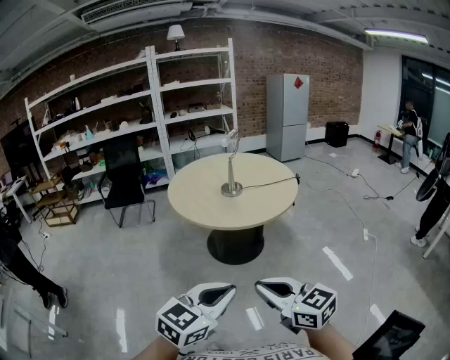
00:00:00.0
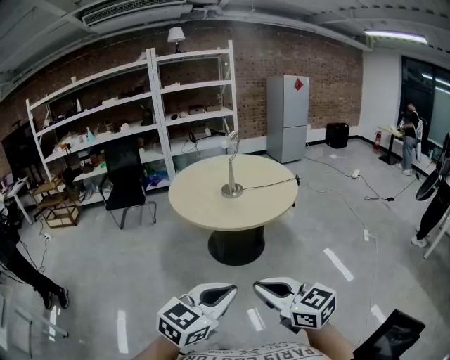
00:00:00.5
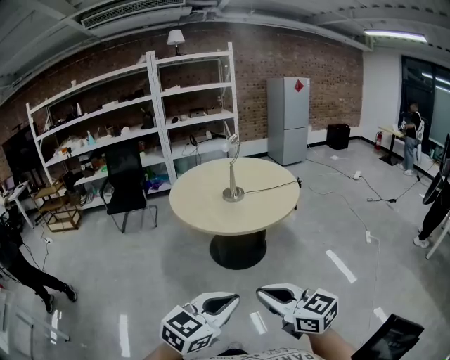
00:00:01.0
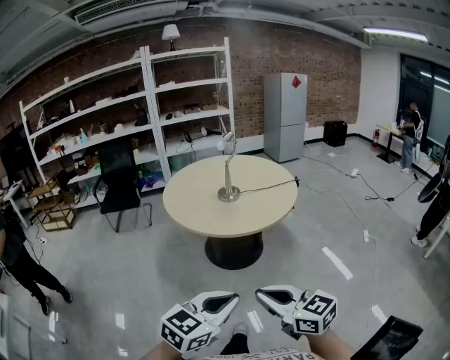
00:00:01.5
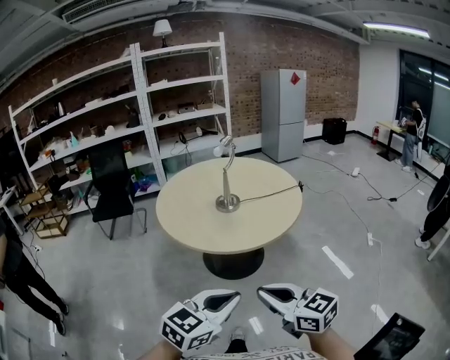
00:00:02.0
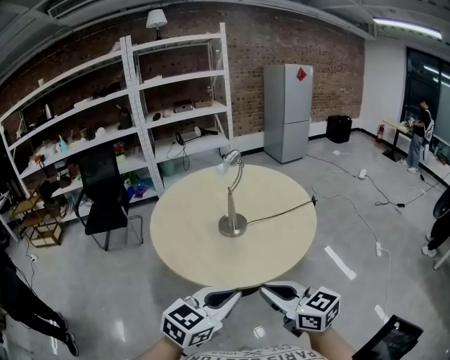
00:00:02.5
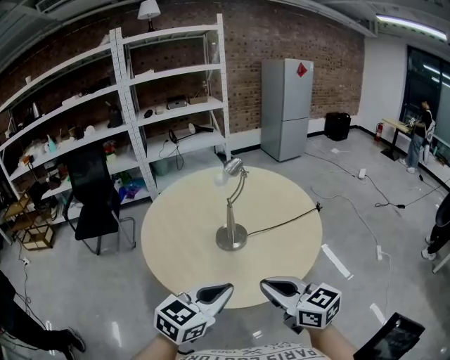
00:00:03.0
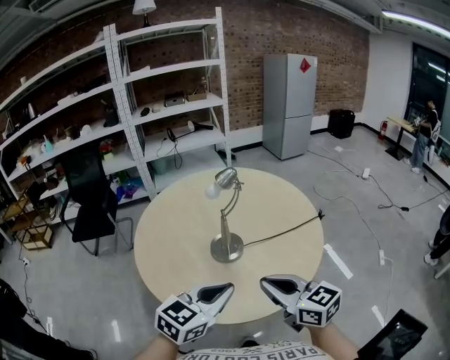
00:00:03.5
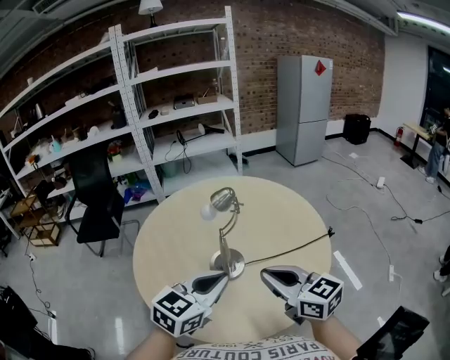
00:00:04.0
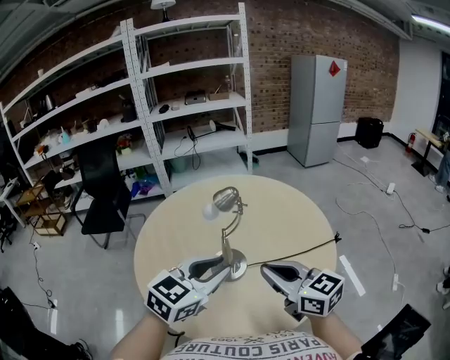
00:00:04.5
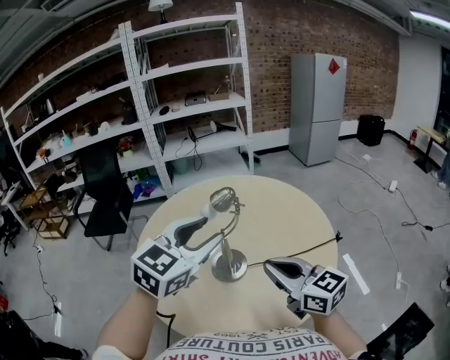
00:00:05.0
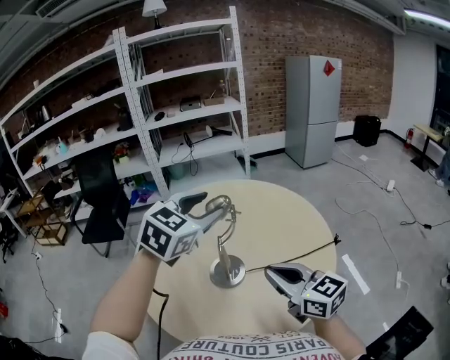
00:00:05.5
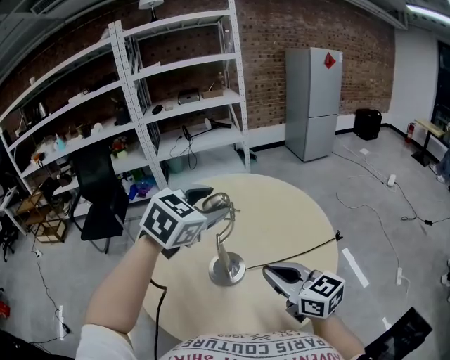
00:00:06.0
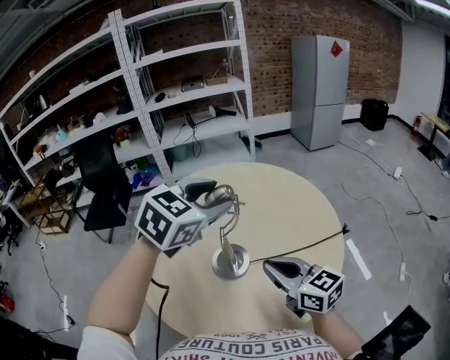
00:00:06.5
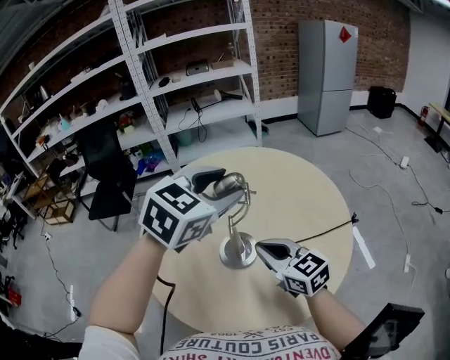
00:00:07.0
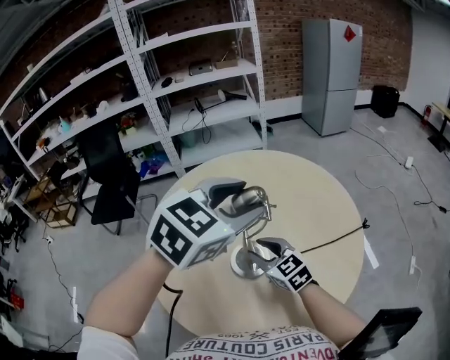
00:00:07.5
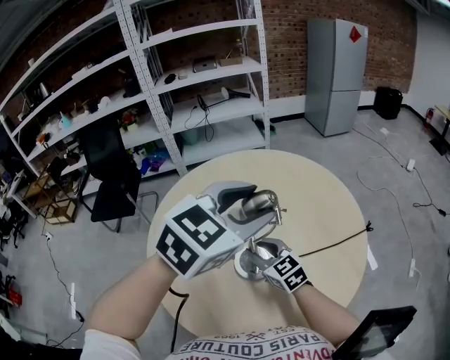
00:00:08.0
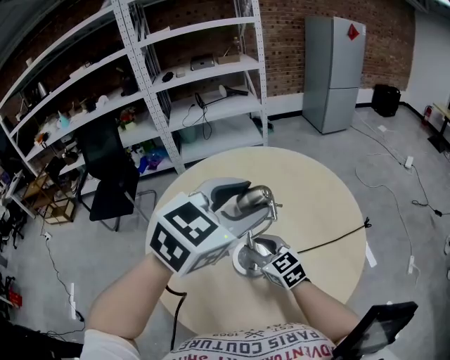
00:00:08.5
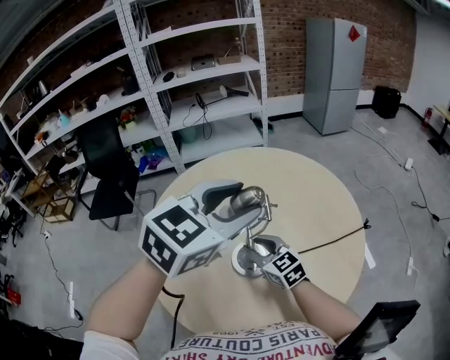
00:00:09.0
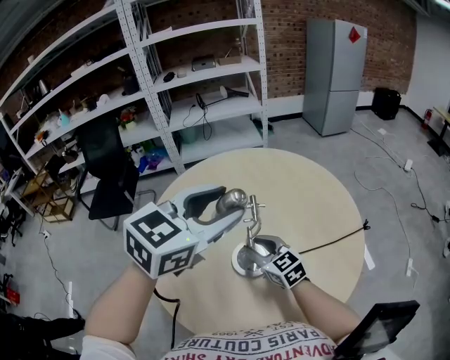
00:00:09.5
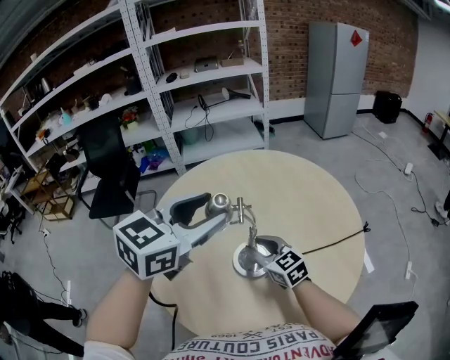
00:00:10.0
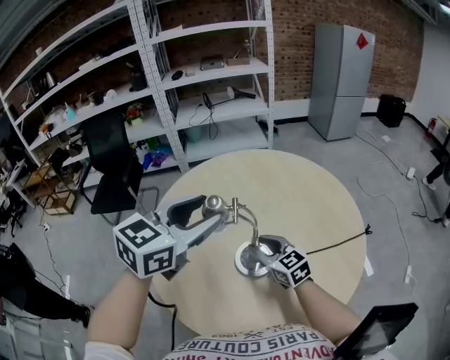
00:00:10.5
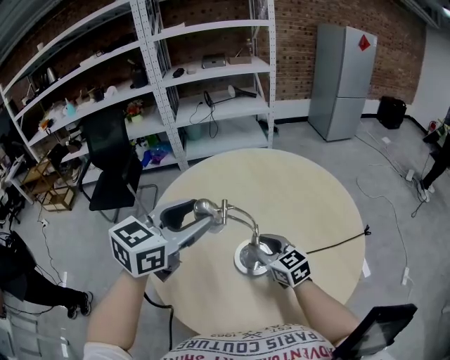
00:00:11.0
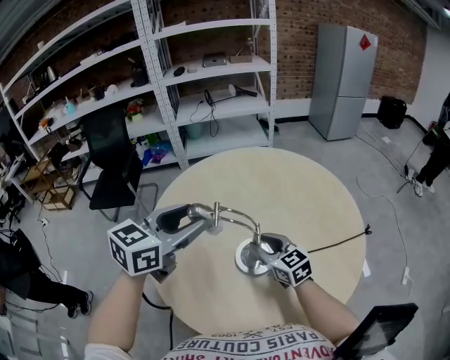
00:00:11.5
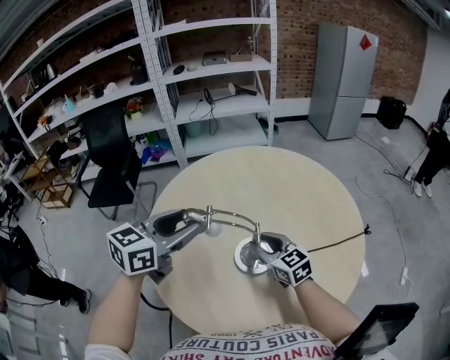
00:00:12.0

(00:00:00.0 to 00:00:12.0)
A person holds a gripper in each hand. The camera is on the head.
00:00:00.0 - 00:00:02.0: Both grippers move forward, roughly 15 cm.
00:00:02.0 - 00:00:04.0: Both grippers are carried forward, some 50 cm.
00:00:04.0 - 00:00:06.0: The right gripper shifts by approximately 5 cm, while the left gripper is displaced forward and upward by approximately 20 cm, turns by approximately 20 degrees, and opens its fingers.
00:00:06.0 - 00:00:08.0: The right gripper moves downward, forward and to the left, approximately 25 cm, and opens.
00:00:08.0 - 00:00:10.0: The left gripper travels to the left by roughly 10 cm.
00:00:10.0 - 00:00:12.0: The left gripper is displaced to the left and downward by approximately 10 cm.

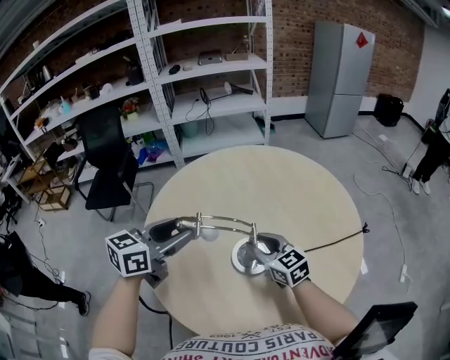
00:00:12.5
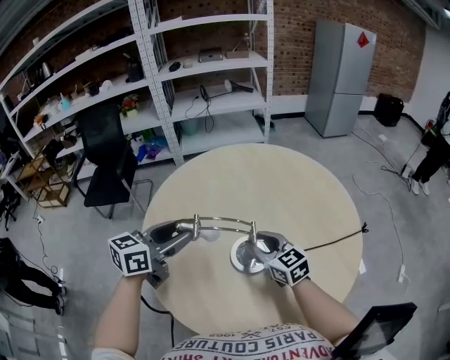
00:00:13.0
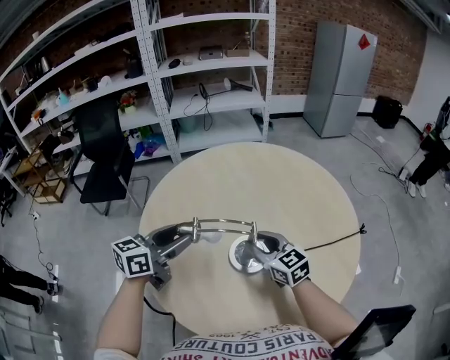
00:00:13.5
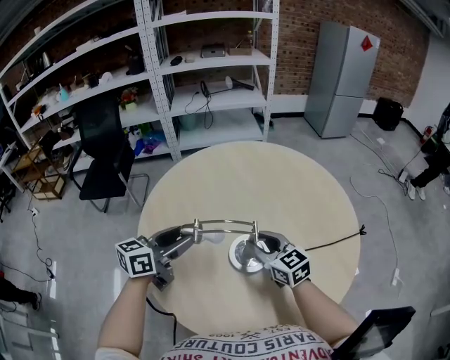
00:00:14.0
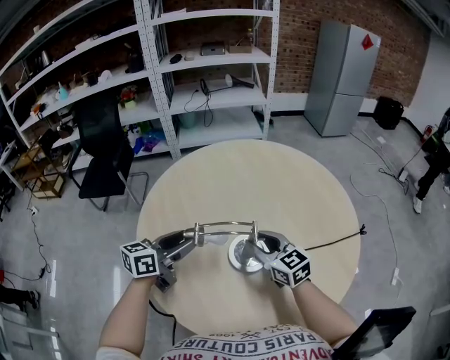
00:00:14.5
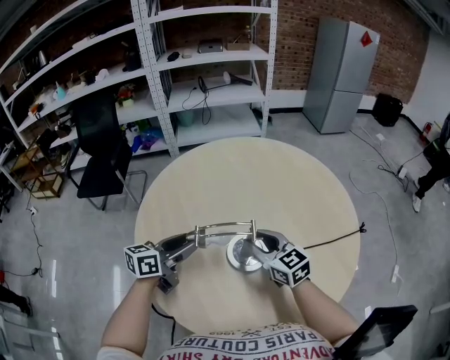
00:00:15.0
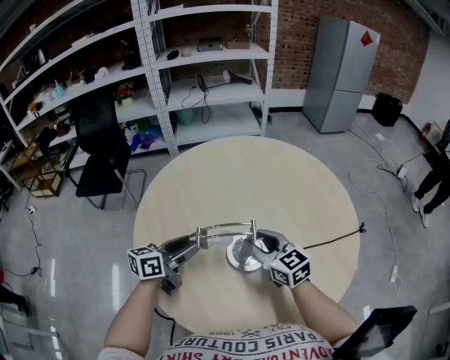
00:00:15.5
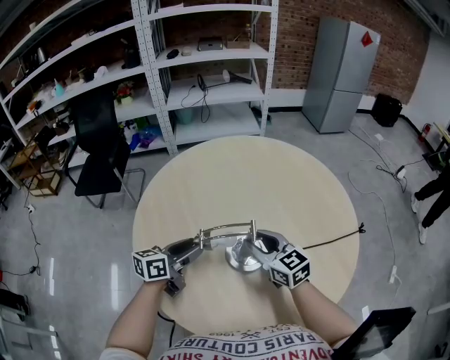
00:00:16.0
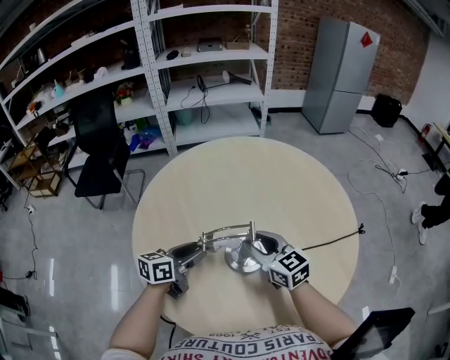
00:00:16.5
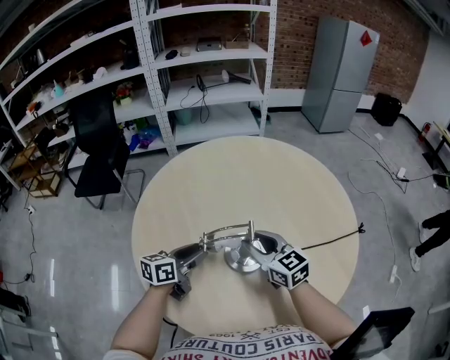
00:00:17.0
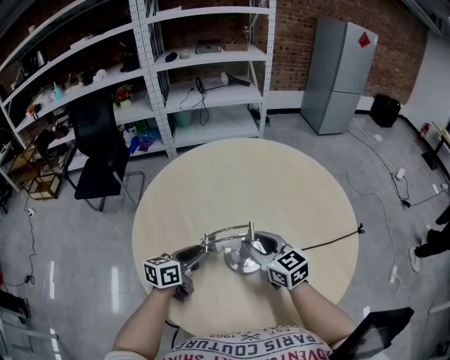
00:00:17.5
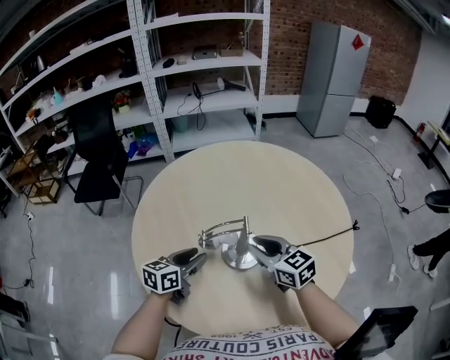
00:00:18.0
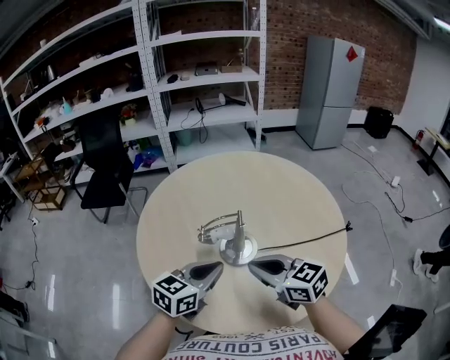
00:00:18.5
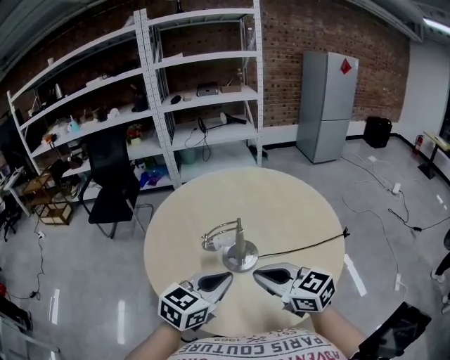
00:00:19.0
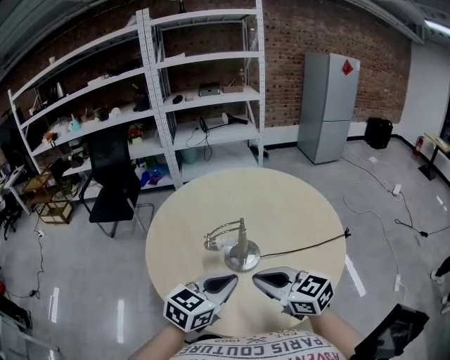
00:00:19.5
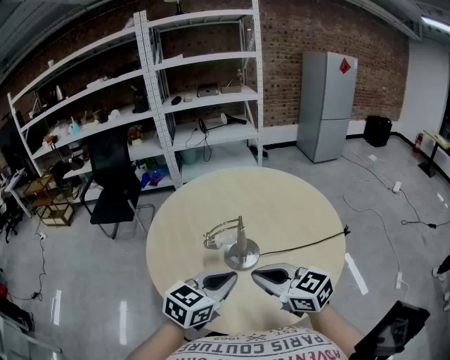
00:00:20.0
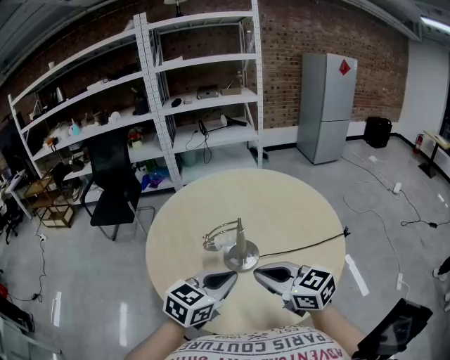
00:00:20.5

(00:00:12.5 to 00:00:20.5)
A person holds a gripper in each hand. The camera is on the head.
00:00:12.5 - 00:00:14.5: The left gripper travels downward by roughly 10 cm.
00:00:14.5 - 00:00:16.5: The left gripper is displaced downward by some 10 cm.
00:00:16.5 - 00:00:18.5: The left gripper moves backward, upward and to the right, some 20 cm, turns by some 20 degrees, and closes up. Meanwhile the right gripper heads backward and upward, covering roughly 15 cm, and closes its fingers.
00:00:18.5 - 00:00:20.5: The right gripper shifts by roughly 5 cm. The left gripper moves upward, roughly 5 cm.

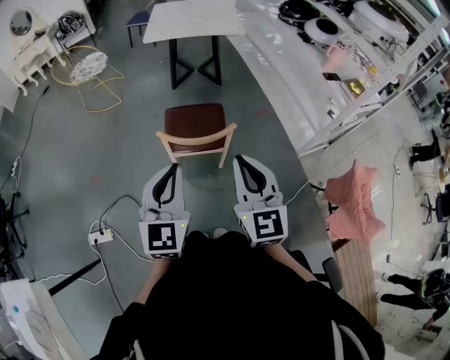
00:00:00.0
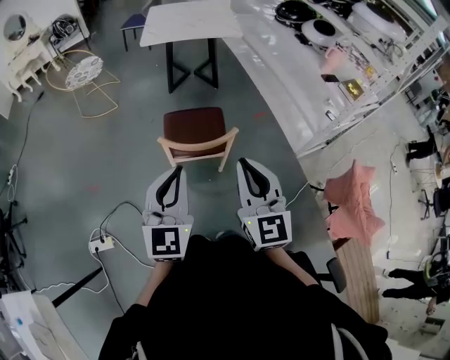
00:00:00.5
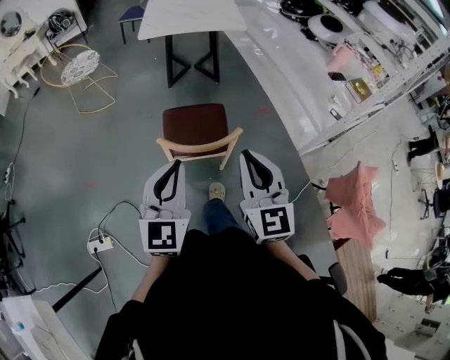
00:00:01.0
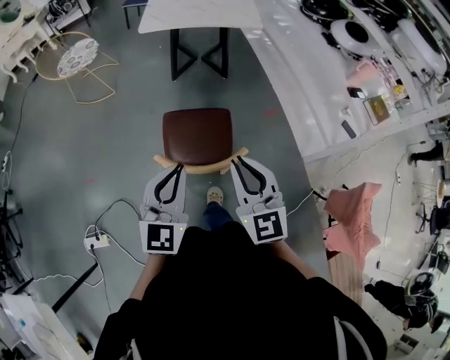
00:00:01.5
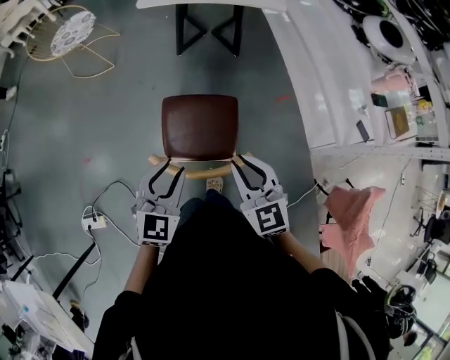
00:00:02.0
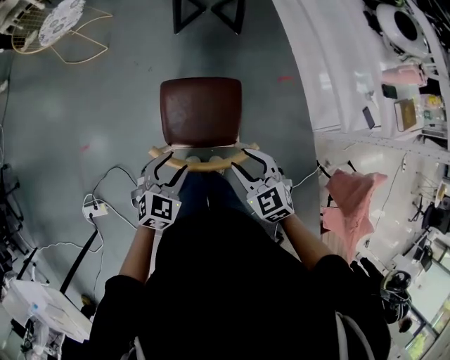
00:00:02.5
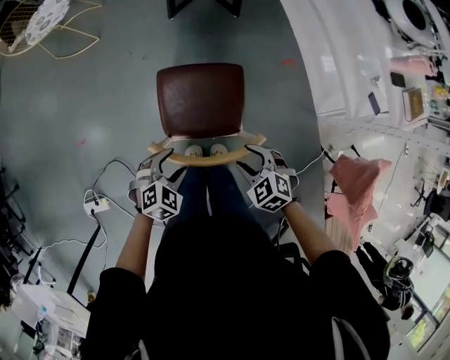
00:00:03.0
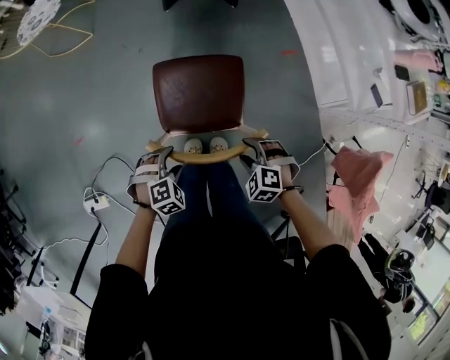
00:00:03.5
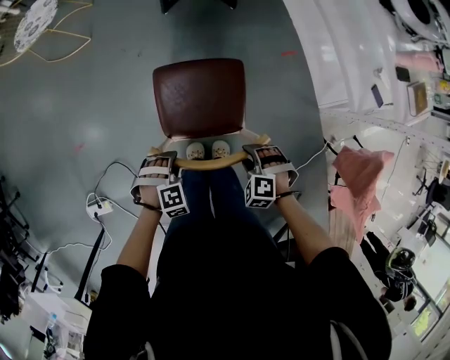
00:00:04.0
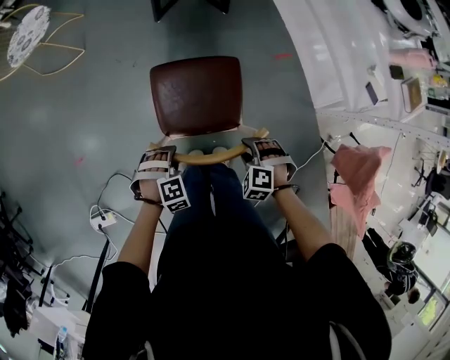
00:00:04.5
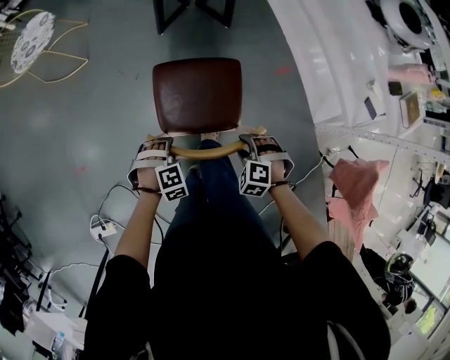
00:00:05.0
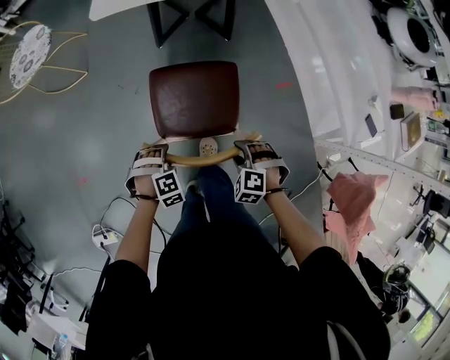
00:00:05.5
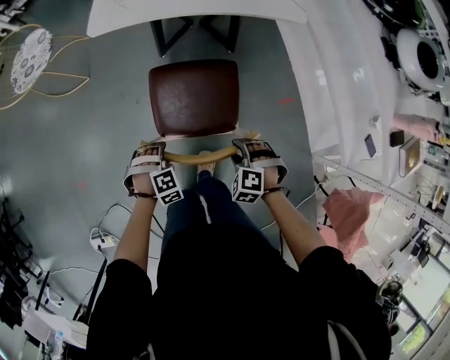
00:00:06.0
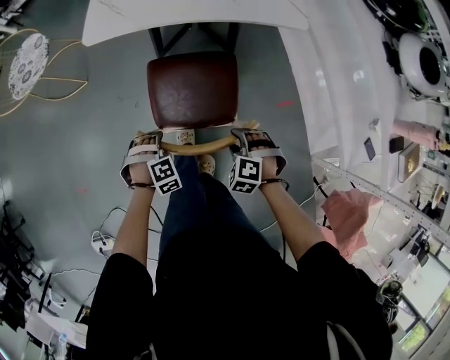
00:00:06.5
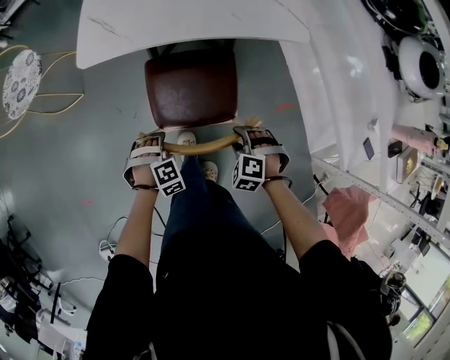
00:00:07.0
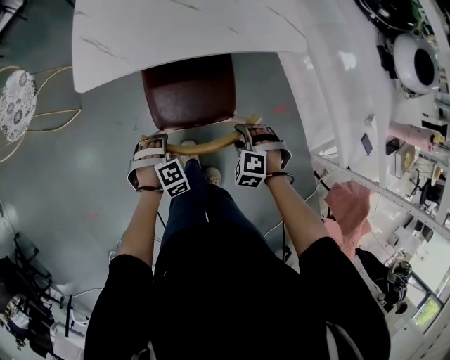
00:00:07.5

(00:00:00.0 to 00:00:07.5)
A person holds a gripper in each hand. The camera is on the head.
00:00:00.0 - 00:00:02.0: Both grippers move forward and downward, some 25 cm. The right gripper turns by approximately 30 degrees; the left gripper opens up.
00:00:02.0 - 00:00:04.0: Both grippers move downward, roughly 25 cm. The right gripper tilts its fingers roughly 50 degrees downward, and opens up; the left gripper tips its fingers downward by roughly 50 degrees.
00:00:04.0 - 00:00:05.5: Both grippers travel together forward, about 20 cm.
00:00:05.5 - 00:00:07.5: The two grippers go approximately 25 cm forward.
